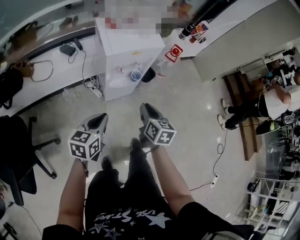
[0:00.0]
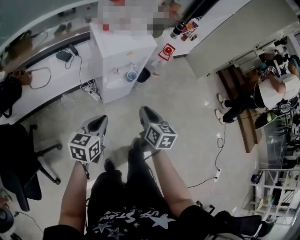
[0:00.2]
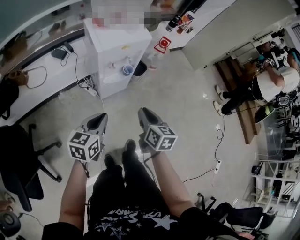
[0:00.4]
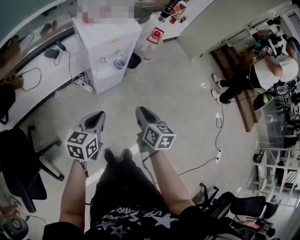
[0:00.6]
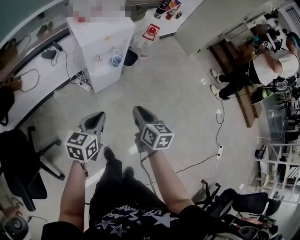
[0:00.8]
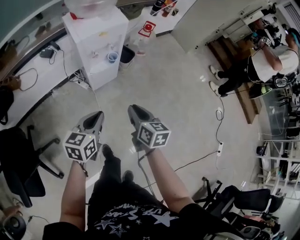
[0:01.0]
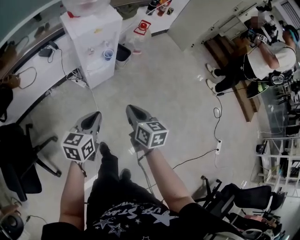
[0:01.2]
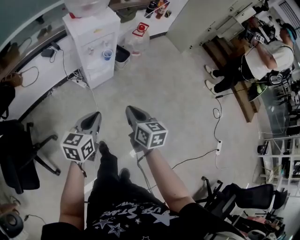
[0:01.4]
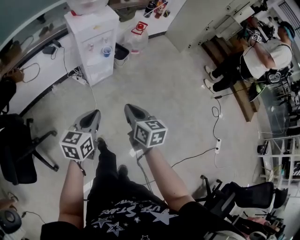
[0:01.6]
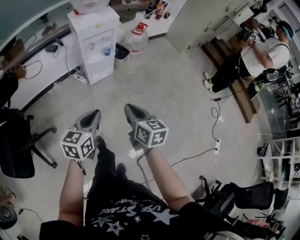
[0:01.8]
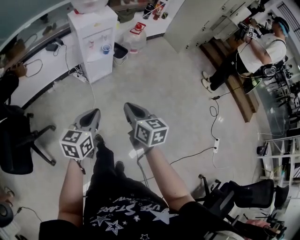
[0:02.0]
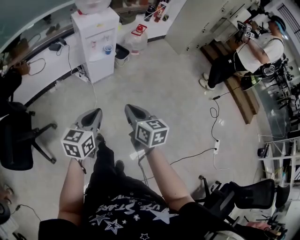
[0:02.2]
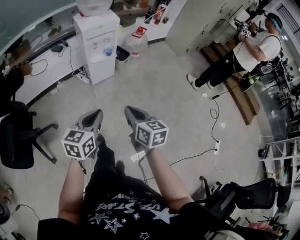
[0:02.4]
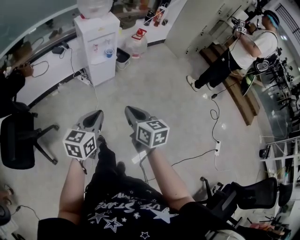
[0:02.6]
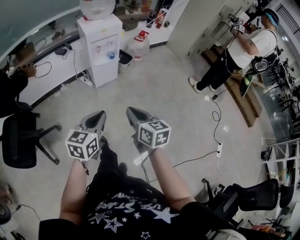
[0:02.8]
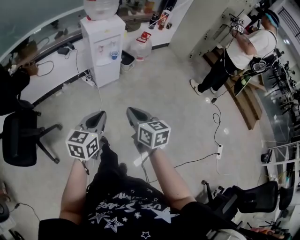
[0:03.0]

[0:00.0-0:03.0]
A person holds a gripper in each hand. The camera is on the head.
0:00.0 to 0:01.6: The right gripper goes some 30 cm backward. The left gripper shifts approximately 25 cm backward and to the right.
0:01.6 to 0:03.0: Both grippers move backward, roughly 15 cm.

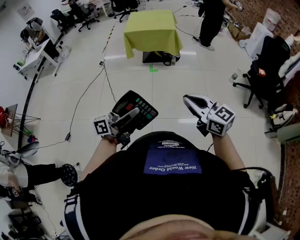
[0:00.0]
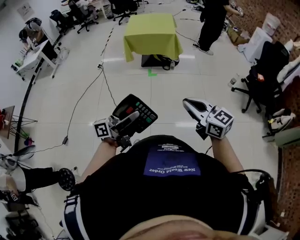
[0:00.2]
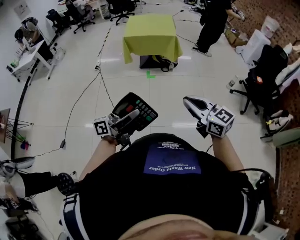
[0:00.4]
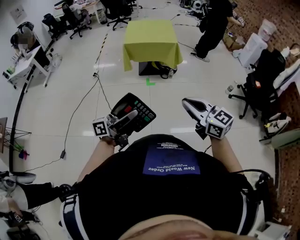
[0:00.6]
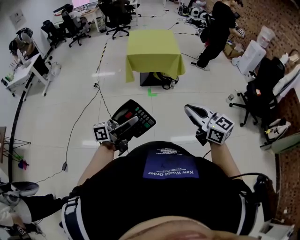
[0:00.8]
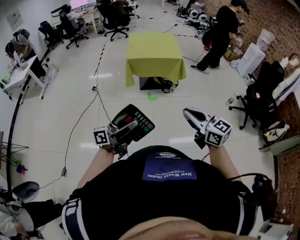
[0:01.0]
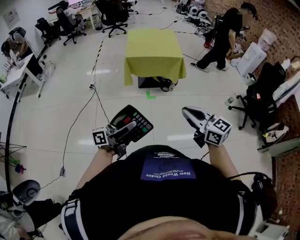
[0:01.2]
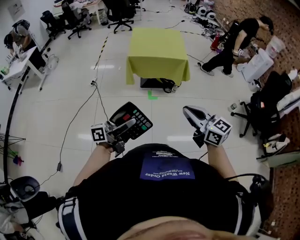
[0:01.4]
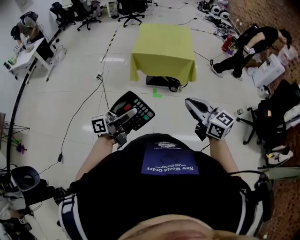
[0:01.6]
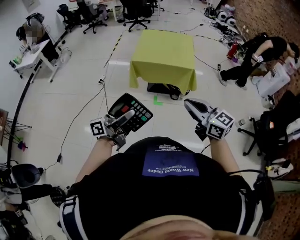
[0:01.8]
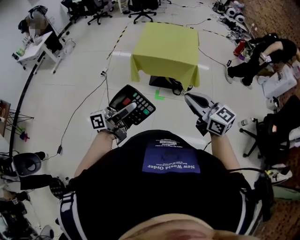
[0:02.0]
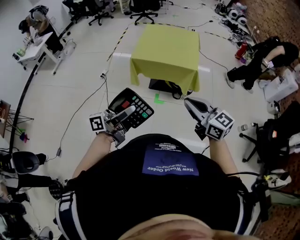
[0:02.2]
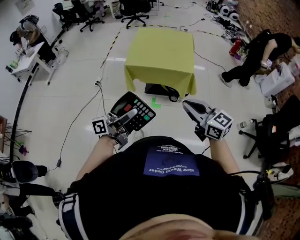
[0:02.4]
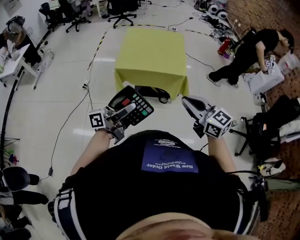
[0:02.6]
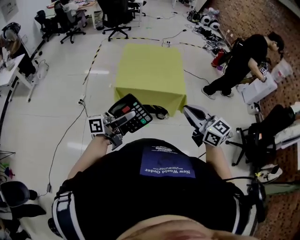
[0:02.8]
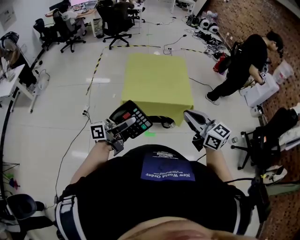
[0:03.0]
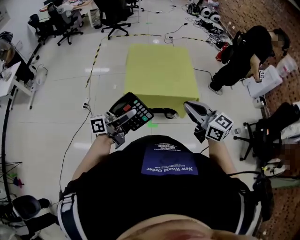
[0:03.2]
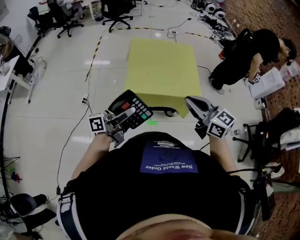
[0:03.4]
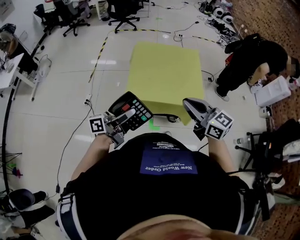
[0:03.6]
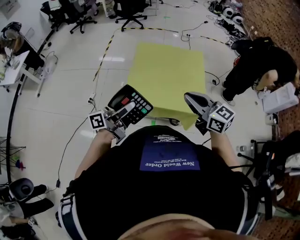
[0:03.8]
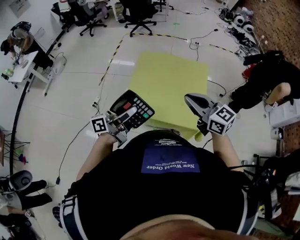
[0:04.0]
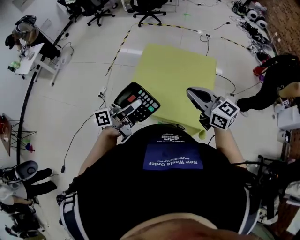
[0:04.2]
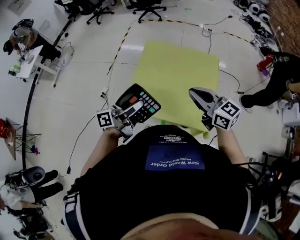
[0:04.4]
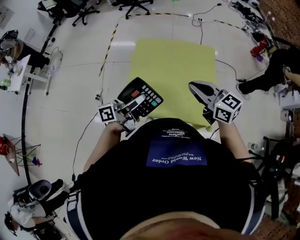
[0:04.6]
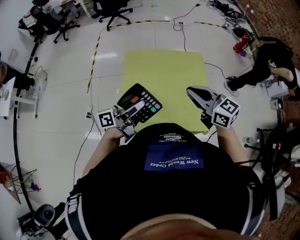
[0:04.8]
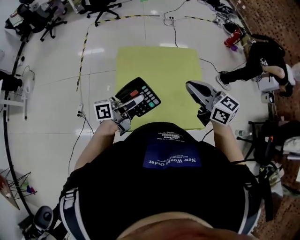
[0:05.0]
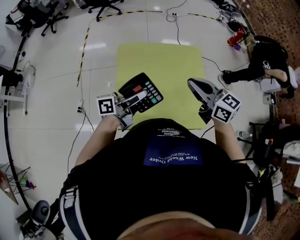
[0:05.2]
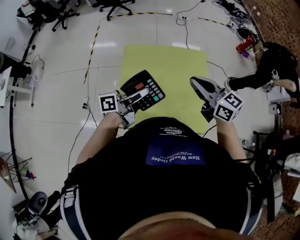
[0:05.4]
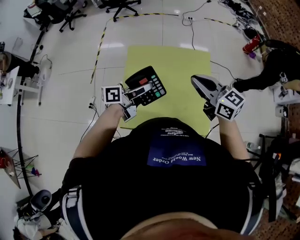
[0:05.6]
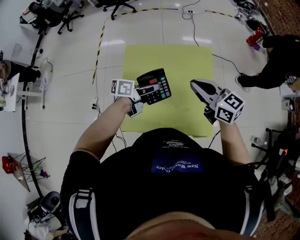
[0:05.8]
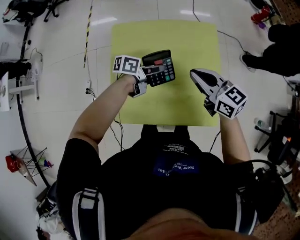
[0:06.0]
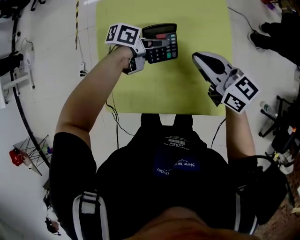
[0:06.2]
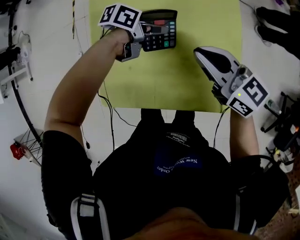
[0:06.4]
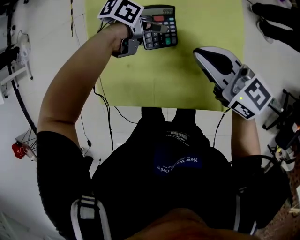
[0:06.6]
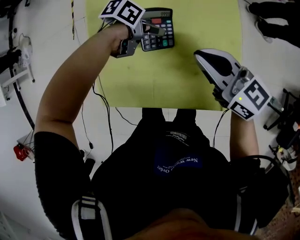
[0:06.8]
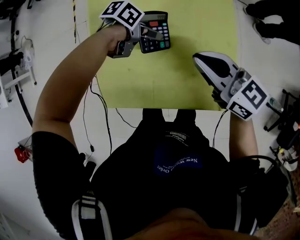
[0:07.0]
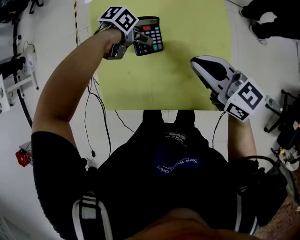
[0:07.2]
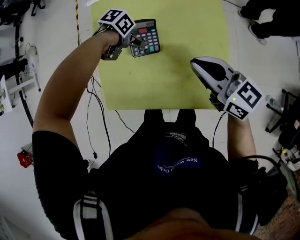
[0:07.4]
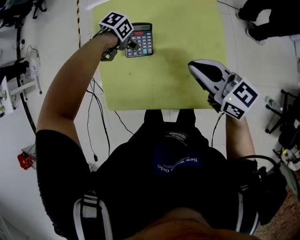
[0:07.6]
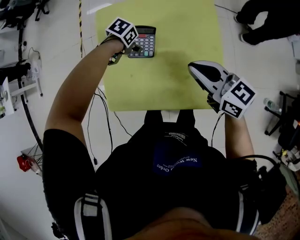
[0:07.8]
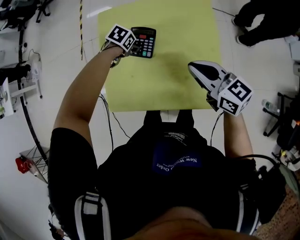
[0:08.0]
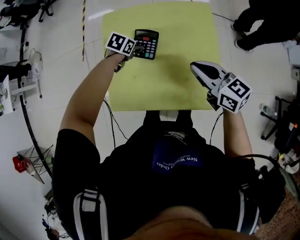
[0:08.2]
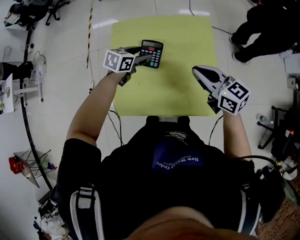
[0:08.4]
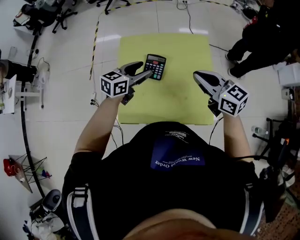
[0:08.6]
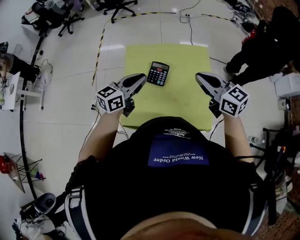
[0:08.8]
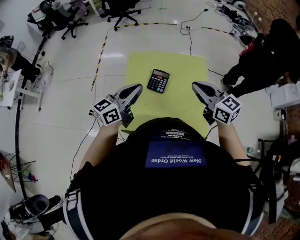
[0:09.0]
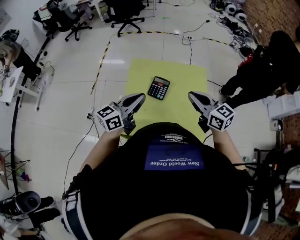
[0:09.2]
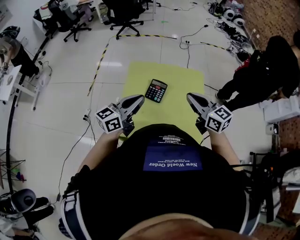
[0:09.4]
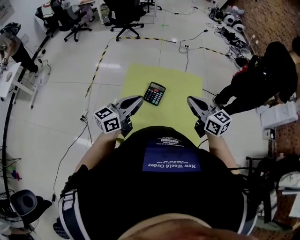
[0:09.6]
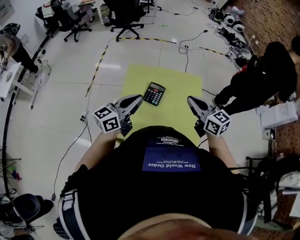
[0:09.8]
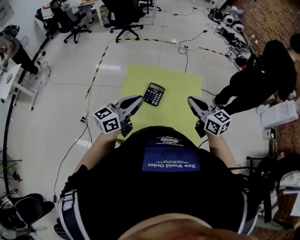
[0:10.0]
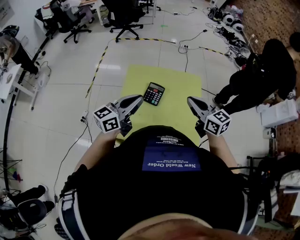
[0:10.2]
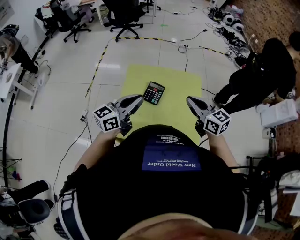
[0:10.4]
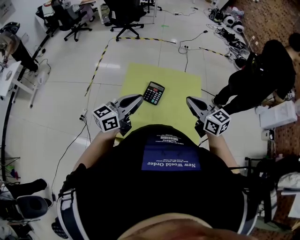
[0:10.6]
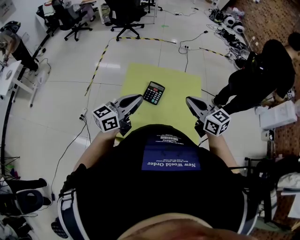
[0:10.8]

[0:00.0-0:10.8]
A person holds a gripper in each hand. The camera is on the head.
0:00.0 to 0:01.6: The pair of grippers is taken forward and to the left, about 40 cm.
0:01.6 to 0:03.0: Both grippers travel together forward, about 35 cm.
0:03.0 to 0:04.6: Both grippers move forward, some 40 cm.
0:04.6 to 0:06.2: The right gripper heads downward, covering approximately 15 cm, while the left gripper shifts by about 35 cm, and tips its fingers downward by about 30 degrees.
0:06.2 to 0:07.8: The right gripper ends up approximately 5 cm from where it was. Meanwhile the left gripper moves roughly 10 cm, tips its fingers downward by roughly 50 degrees, and opens its fingers.
0:07.8 to 0:09.2: The left gripper moves upward, about 30 cm, tilts its fingers about 80 degrees upward, and closes its fingers. Meanwhile the right gripper shifts about 10 cm upward.
0:09.2 to 0:10.8: There are only small adjustments of the grippers.

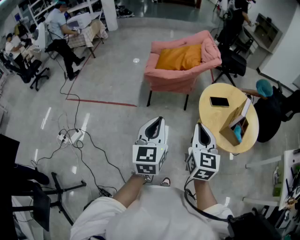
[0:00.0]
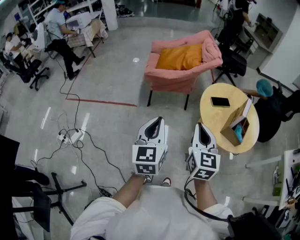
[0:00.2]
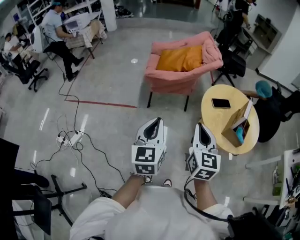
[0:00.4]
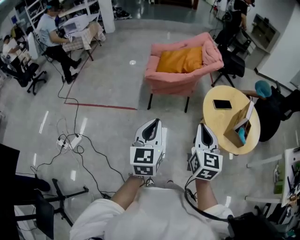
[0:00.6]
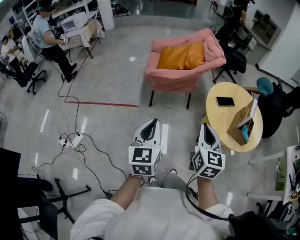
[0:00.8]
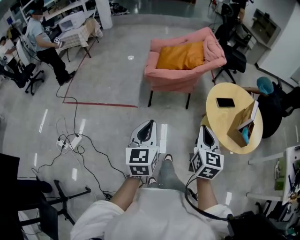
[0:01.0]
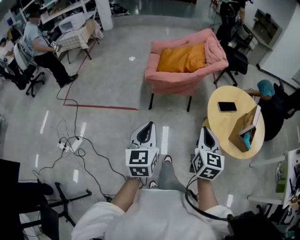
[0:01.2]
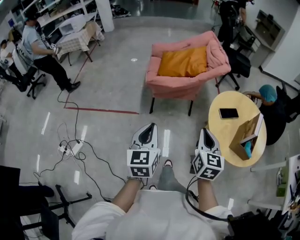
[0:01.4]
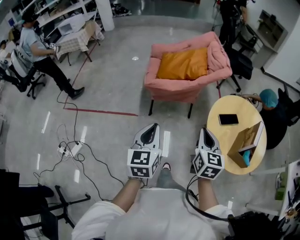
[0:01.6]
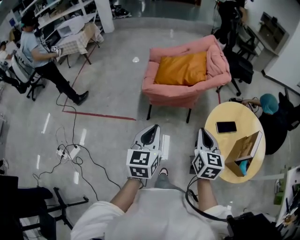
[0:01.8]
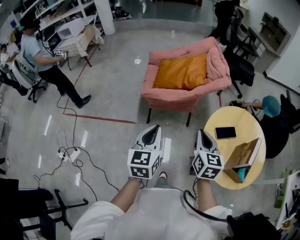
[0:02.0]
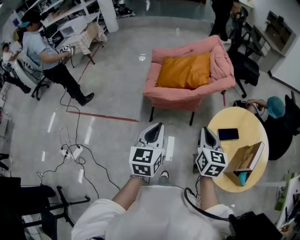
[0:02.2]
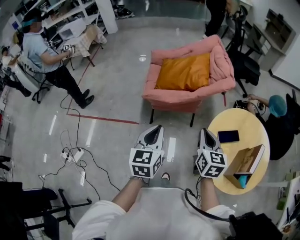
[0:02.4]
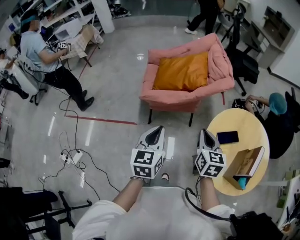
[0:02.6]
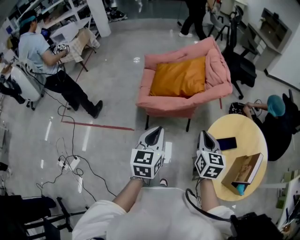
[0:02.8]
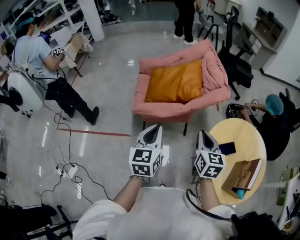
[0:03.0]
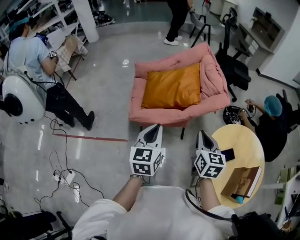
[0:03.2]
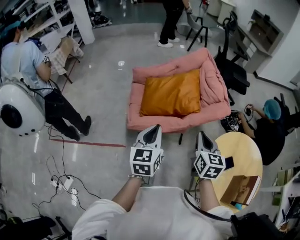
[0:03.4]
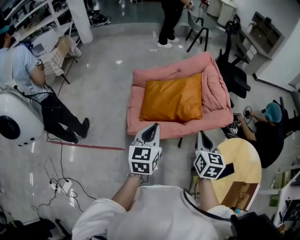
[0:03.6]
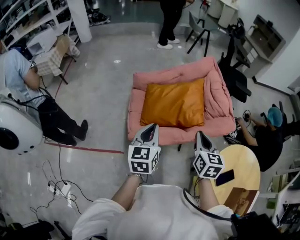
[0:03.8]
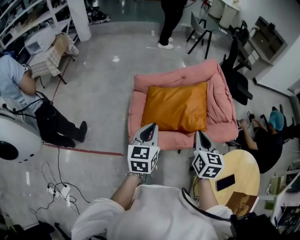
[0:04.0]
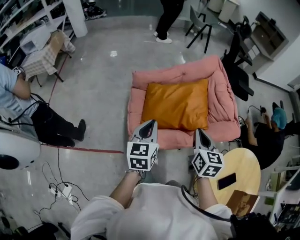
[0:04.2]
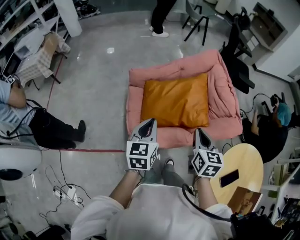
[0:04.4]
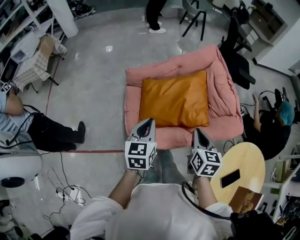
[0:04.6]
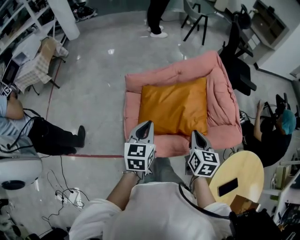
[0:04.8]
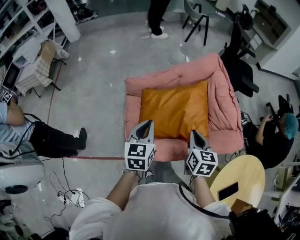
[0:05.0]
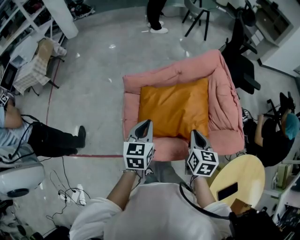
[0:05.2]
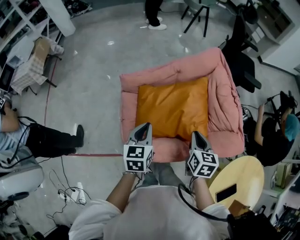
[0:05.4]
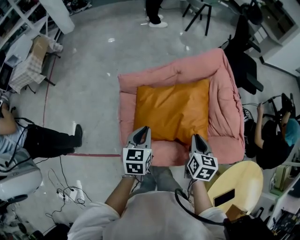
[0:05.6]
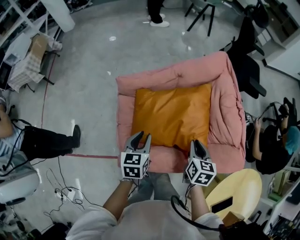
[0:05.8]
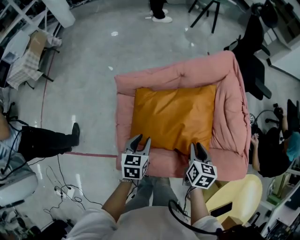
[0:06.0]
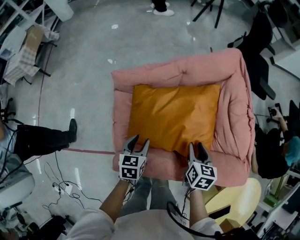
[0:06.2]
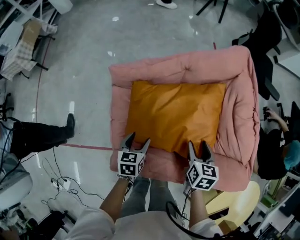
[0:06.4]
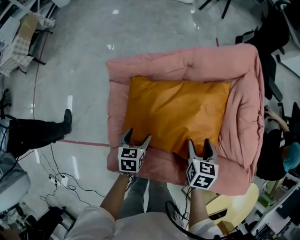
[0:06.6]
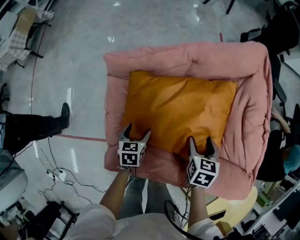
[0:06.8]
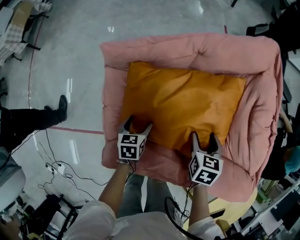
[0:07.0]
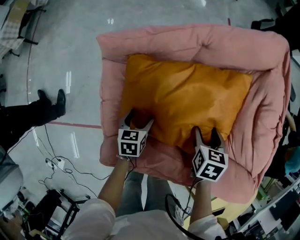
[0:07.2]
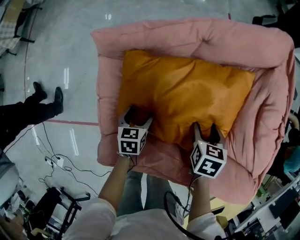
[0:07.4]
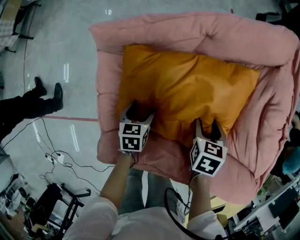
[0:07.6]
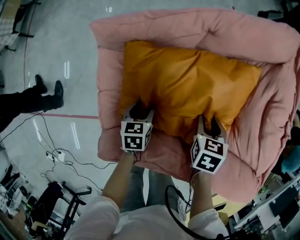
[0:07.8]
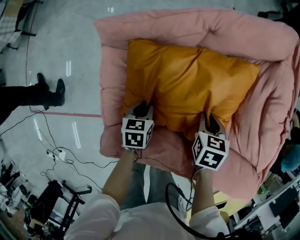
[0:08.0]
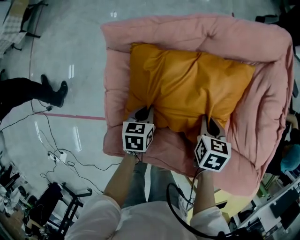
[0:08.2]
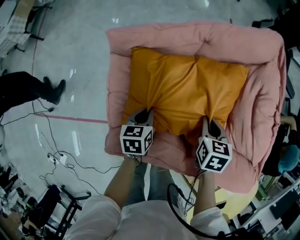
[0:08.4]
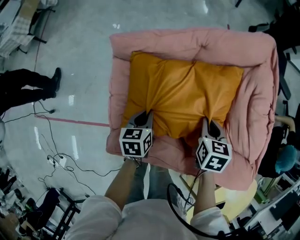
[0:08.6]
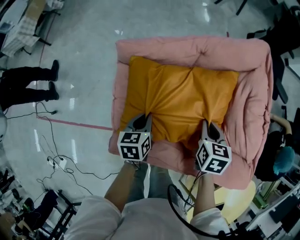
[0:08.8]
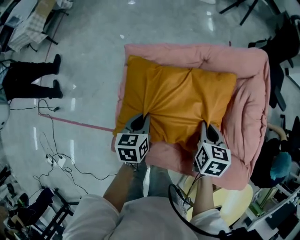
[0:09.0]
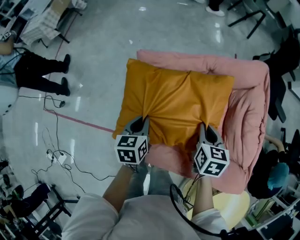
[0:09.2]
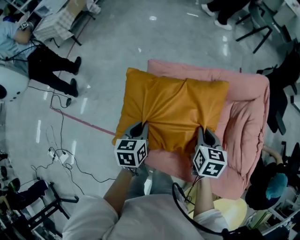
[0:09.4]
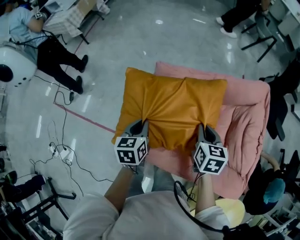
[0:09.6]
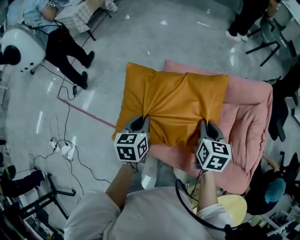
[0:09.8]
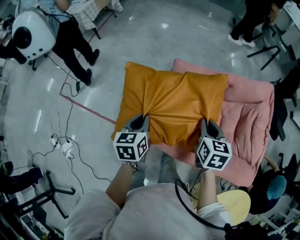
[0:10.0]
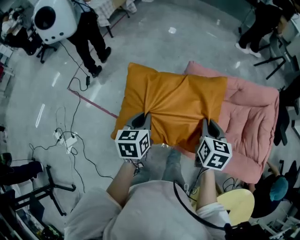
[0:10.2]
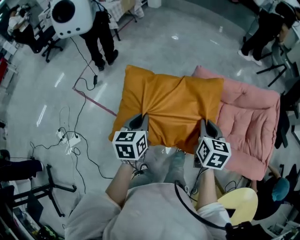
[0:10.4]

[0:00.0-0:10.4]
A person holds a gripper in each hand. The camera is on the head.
0:00.0 to 0:01.4: The right gripper is displaced forward and downward by some 15 cm, while the left gripper goes roughly 15 cm forward, to the left and downward.
0:01.4 to 0:03.0: Both grippers travel together forward, about 30 cm.
0:03.0 to 0:04.4: Both grippers move forward and to the left, roughly 30 cm.
0:04.4 to 0:06.0: Both grippers move downward and forward, roughly 25 cm. The left gripper rotates roughly 20 degrees.
0:06.0 to 0:07.4: The left gripper travels downward by some 20 cm, and opens; the right gripper shifts some 15 cm downward and forward, changes its angle by approximately 30 degrees, and opens its fingers.
0:07.4 to 0:09.0: Both grippers travel together upward, some 15 cm. The right gripper swivels about 20 degrees, and closes its fingers; the left gripper closes.
0:09.0 to 0:10.4: The left gripper heads to the left, backward and upward, covering roughly 40 cm, and turns by approximately 30 degrees; the right gripper shifts approximately 35 cm to the left and upward, and turns by roughly 30 degrees.
